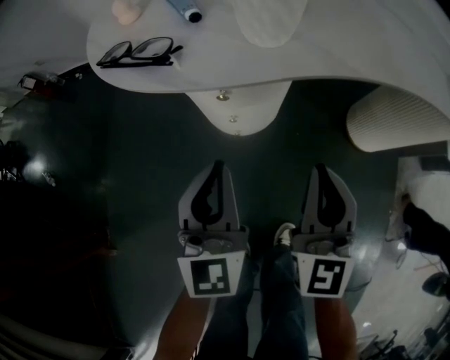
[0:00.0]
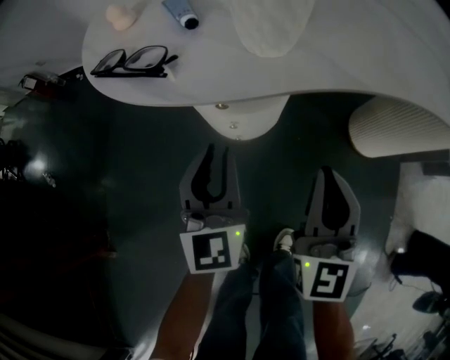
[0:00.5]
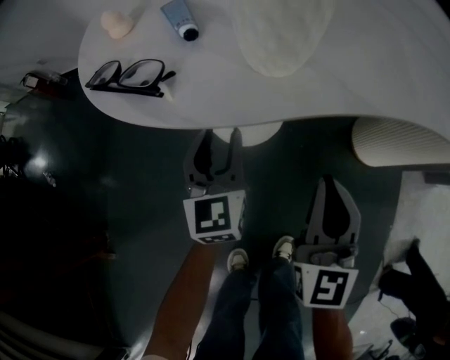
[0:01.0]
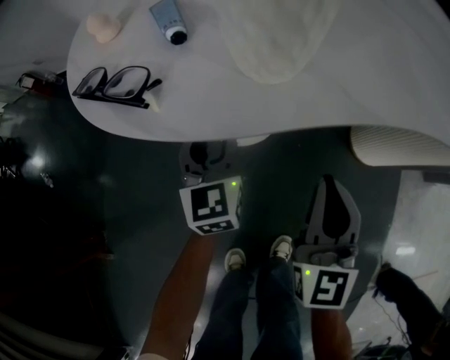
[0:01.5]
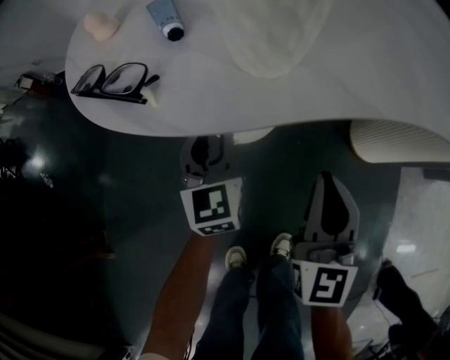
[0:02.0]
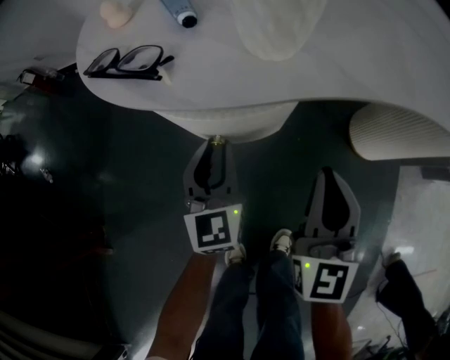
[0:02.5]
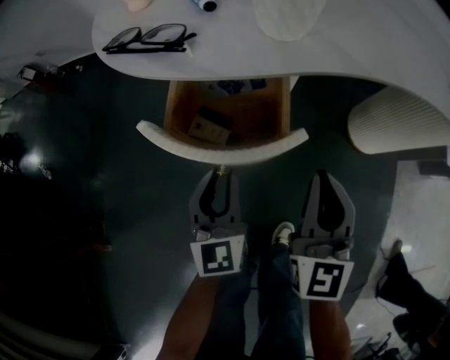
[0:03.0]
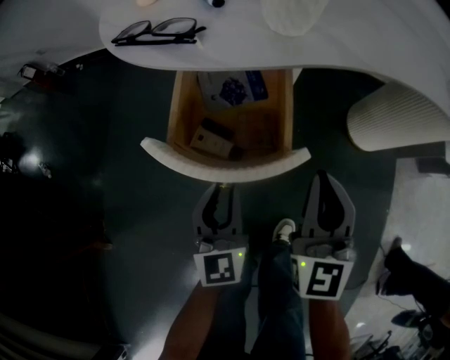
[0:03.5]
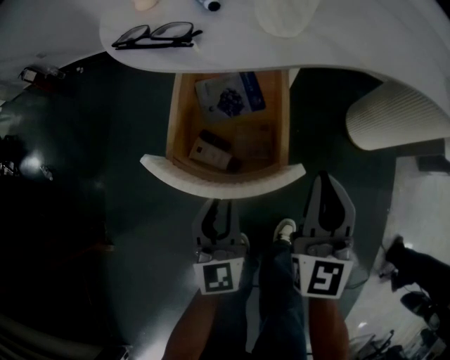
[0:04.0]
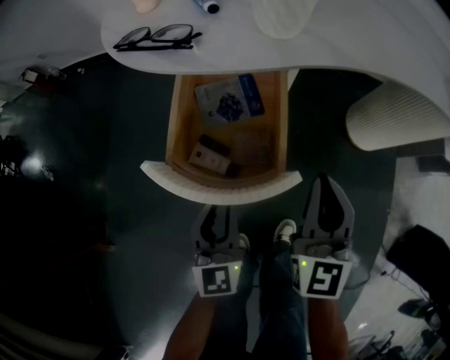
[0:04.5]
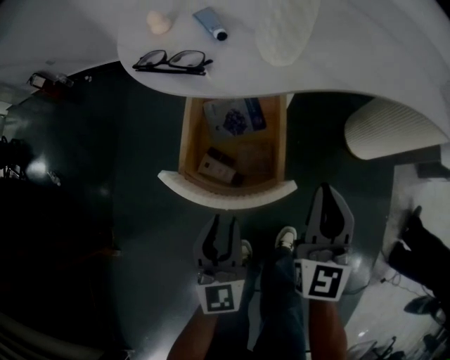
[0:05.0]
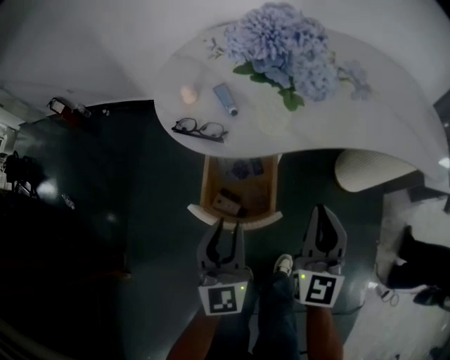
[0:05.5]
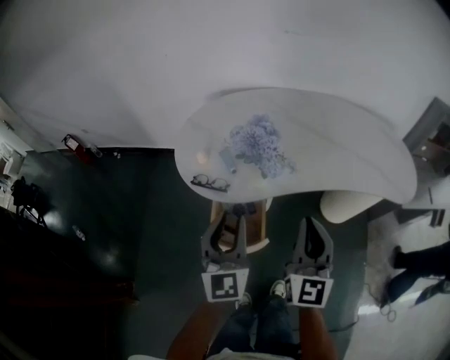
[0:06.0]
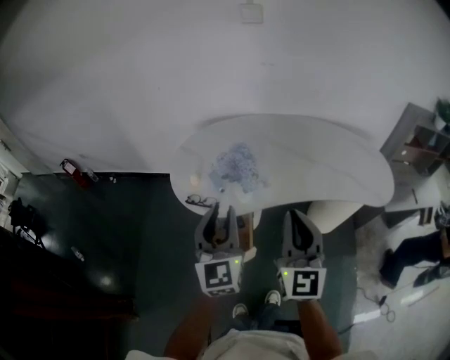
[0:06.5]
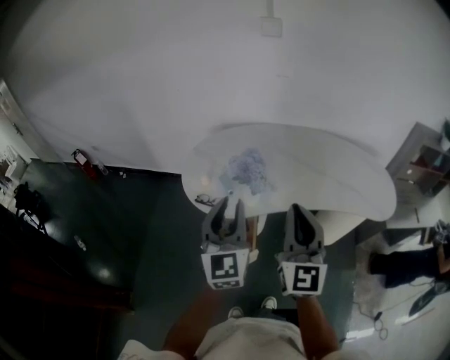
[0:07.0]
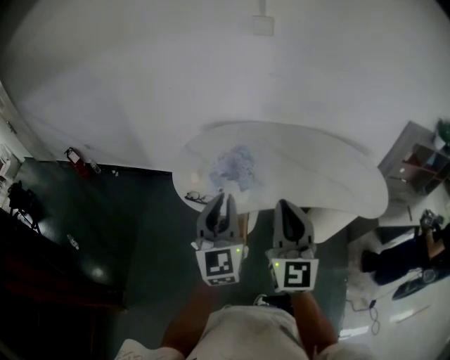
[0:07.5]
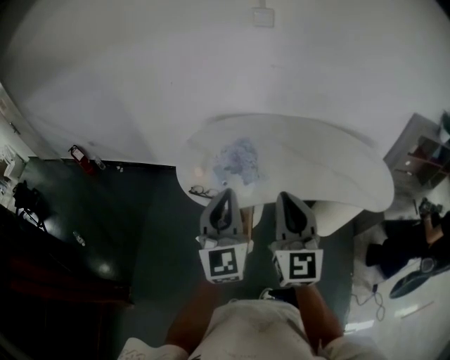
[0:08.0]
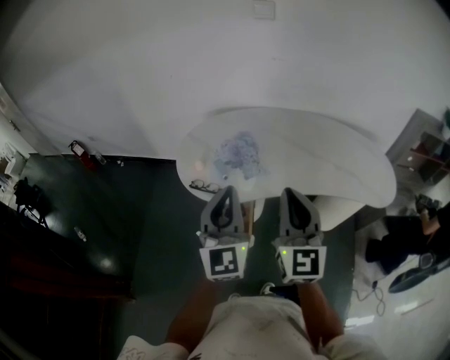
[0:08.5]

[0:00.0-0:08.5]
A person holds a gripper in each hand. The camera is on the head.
0:00.0 to 0:02.0: The right gripper is displaced forward by roughly 5 cm; the left gripper goes some 15 cm forward and downward, and opens.
0:02.0 to 0:04.0: The right gripper is displaced backward by about 10 cm. The left gripper moves backward, some 25 cm.
0:04.0 to 0:06.5: The grippers both shift upward by about 40 cm. The left gripper rotates about 20 degrees.
0:06.5 to 0:08.5: The left gripper moves roughly 5 cm, and closes its fingers.

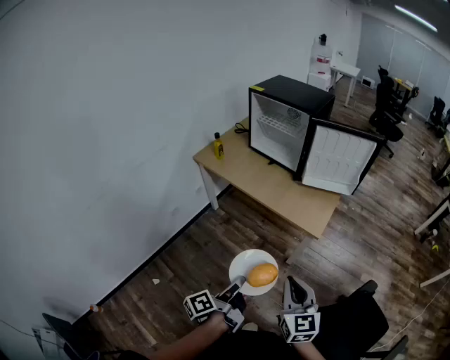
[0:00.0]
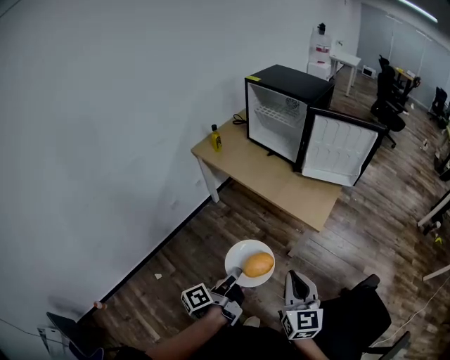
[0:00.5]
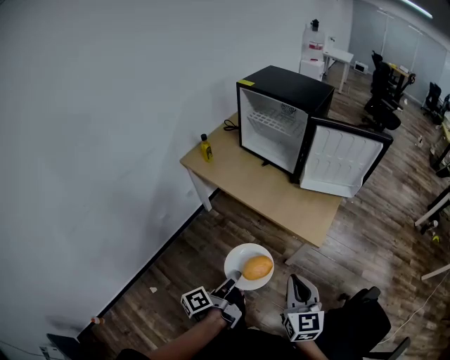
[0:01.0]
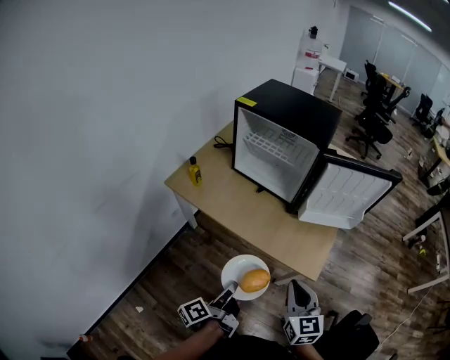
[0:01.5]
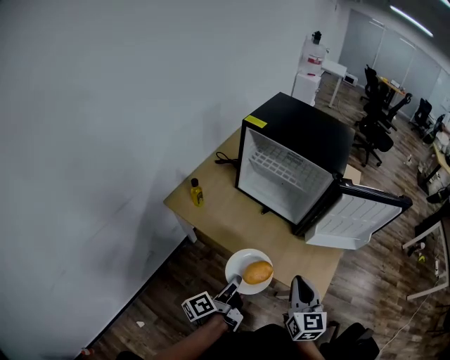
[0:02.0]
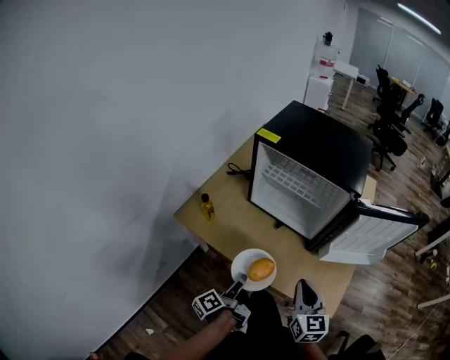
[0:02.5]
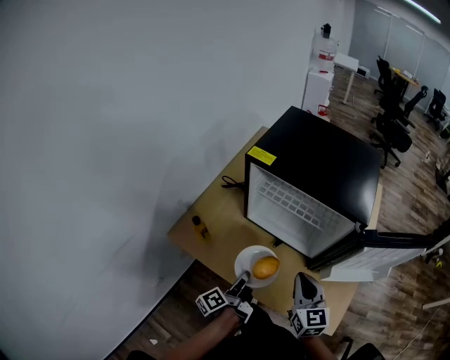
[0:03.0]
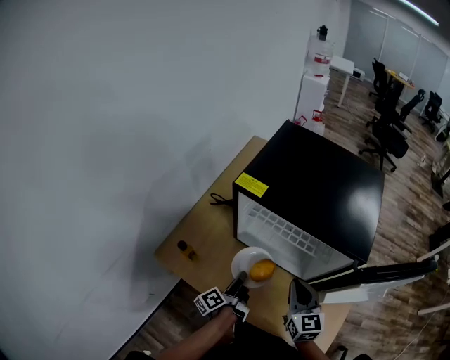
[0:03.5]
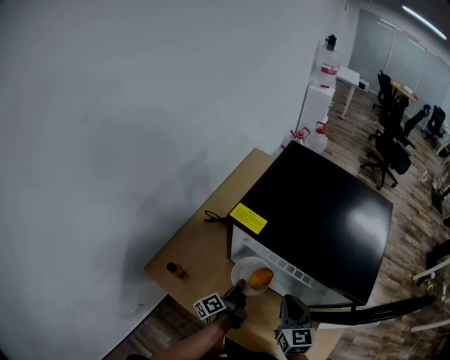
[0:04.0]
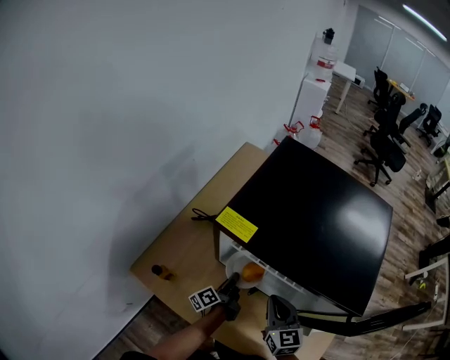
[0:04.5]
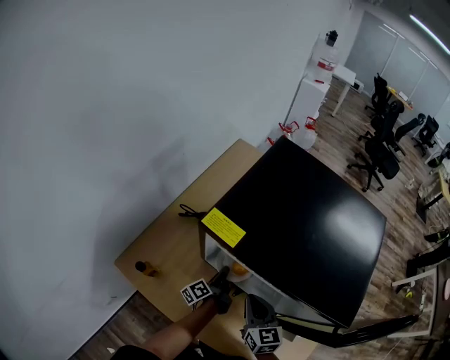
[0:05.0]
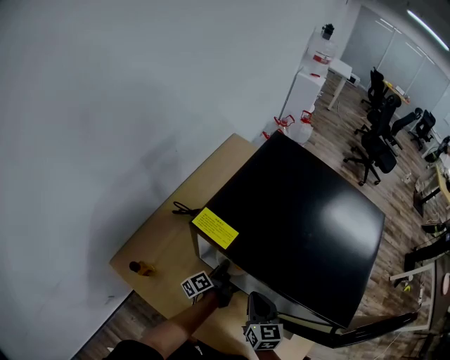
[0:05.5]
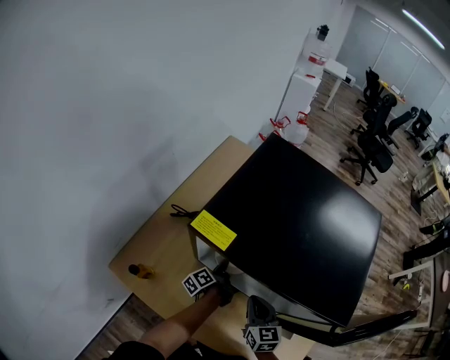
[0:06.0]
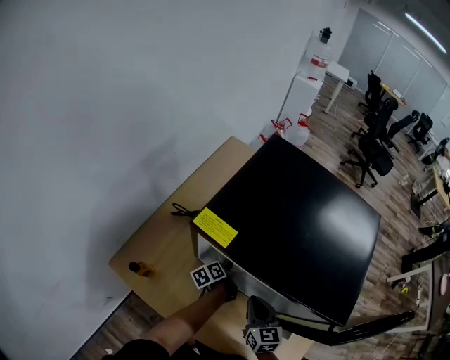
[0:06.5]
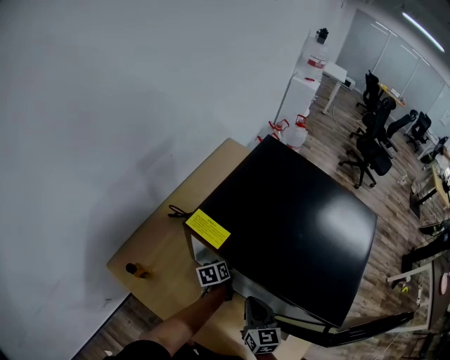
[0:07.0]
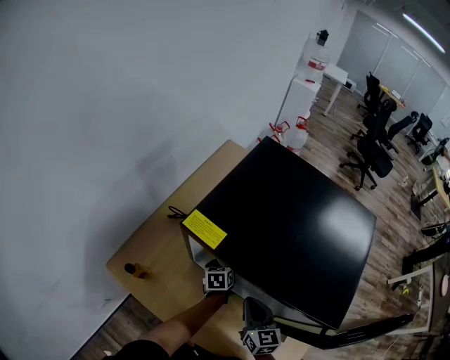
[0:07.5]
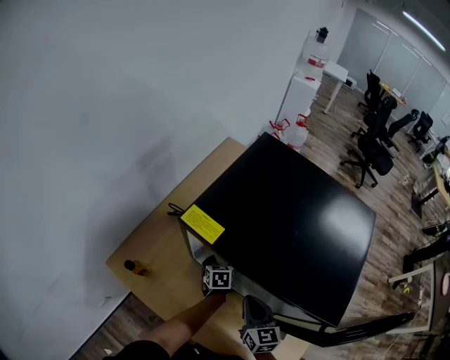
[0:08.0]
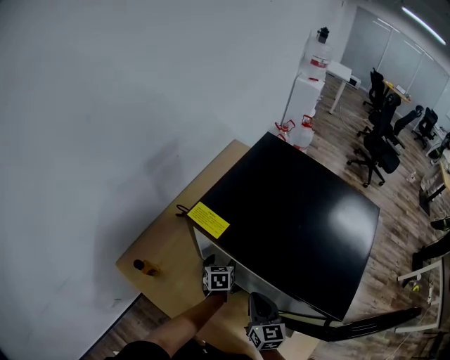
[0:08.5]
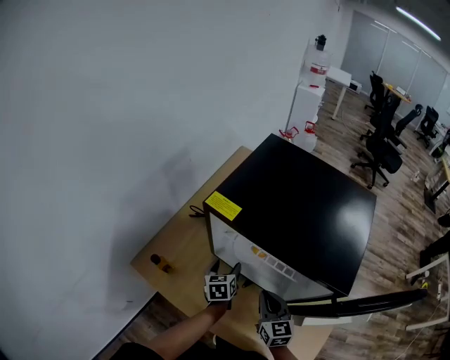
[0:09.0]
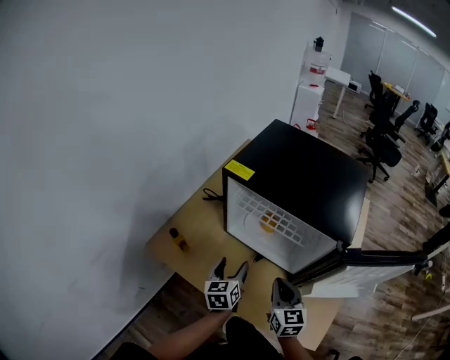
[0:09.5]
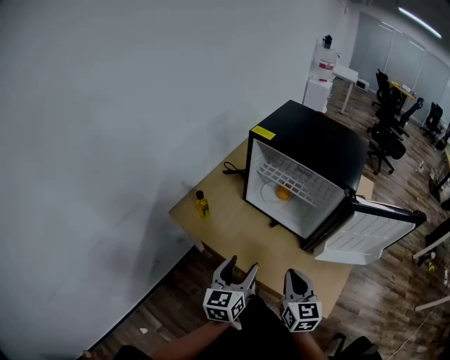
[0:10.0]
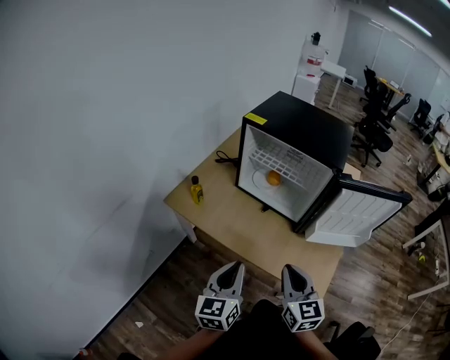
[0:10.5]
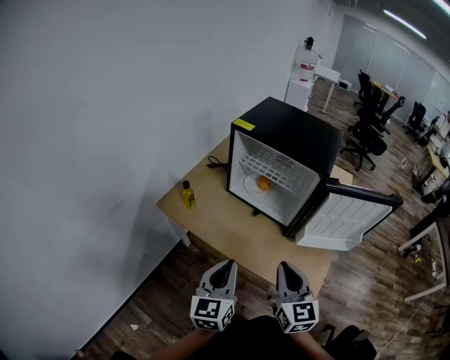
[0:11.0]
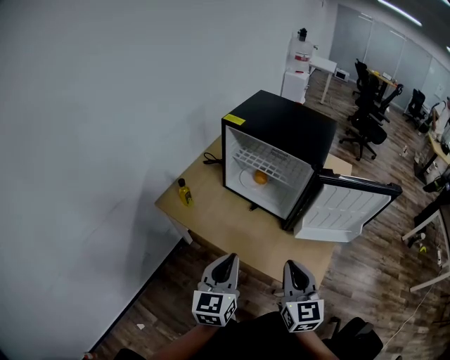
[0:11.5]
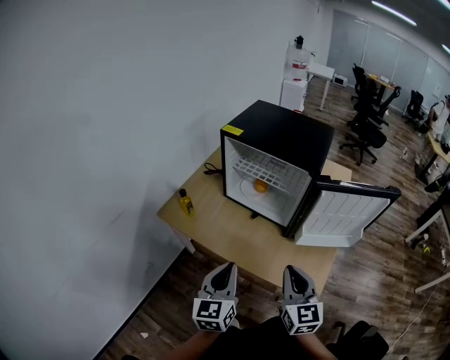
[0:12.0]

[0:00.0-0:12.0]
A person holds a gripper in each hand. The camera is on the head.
0:00.0 to 0:02.0: The two grippers go about 35 cm forward.
0:02.0 to 0:04.0: The grippers both shift forward by about 35 cm.
0:04.0 to 0:06.0: The left gripper travels forward and downward by roughly 15 cm, while the right gripper is displaced downward by roughly 10 cm.
0:06.0 to 0:08.0: The left gripper twists approximately 60 degrees clockwise, seen from behind, and opens its fingers.
0:08.0 to 0:10.0: The right gripper moves backward and upward, about 30 cm. Meanwhile the left gripper shifts about 50 cm backward and upward, and tilts its fingers roughly 40 degrees upward.
0:10.0 to 0:12.0: The left gripper is displaced backward and upward by some 10 cm, and closes its fingers. Meanwhile the right gripper moves upward and backward, approximately 10 cm.

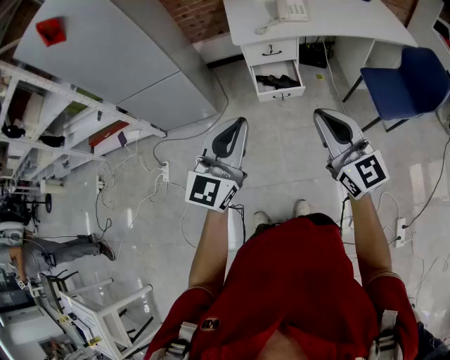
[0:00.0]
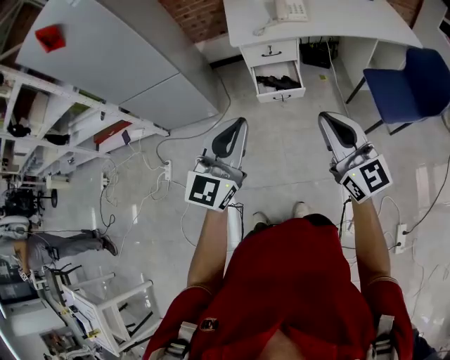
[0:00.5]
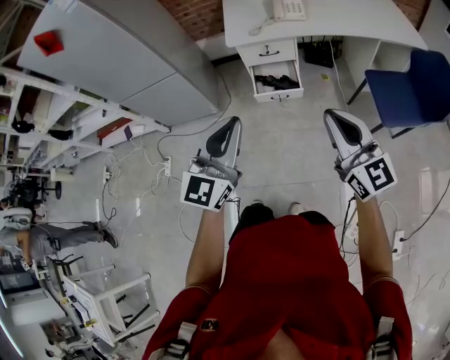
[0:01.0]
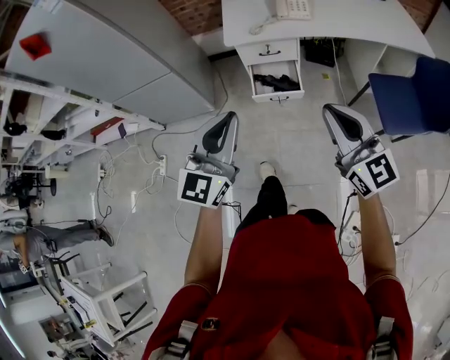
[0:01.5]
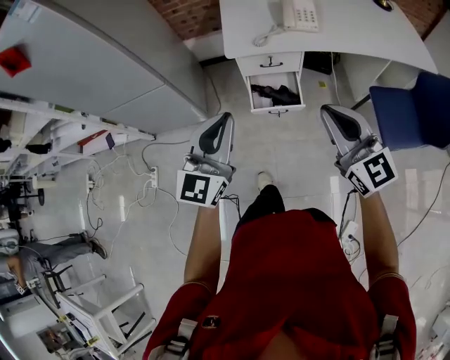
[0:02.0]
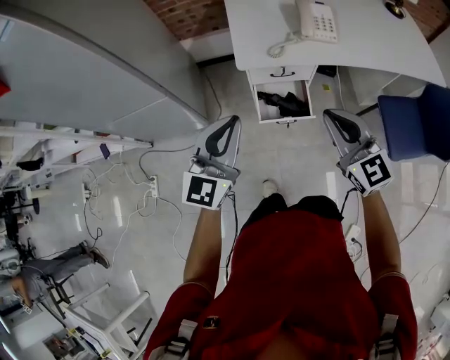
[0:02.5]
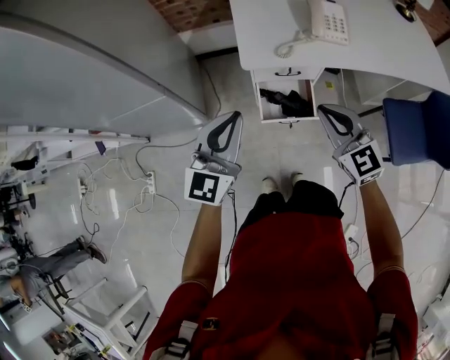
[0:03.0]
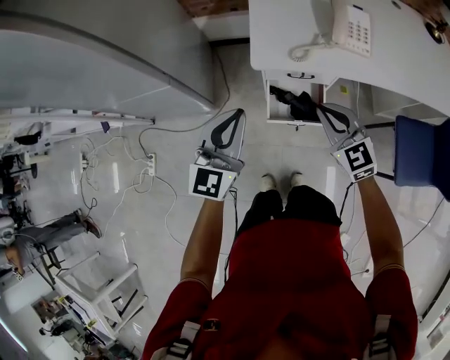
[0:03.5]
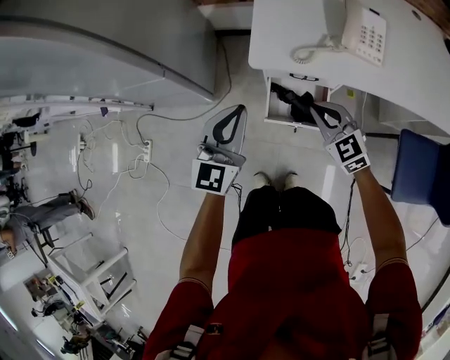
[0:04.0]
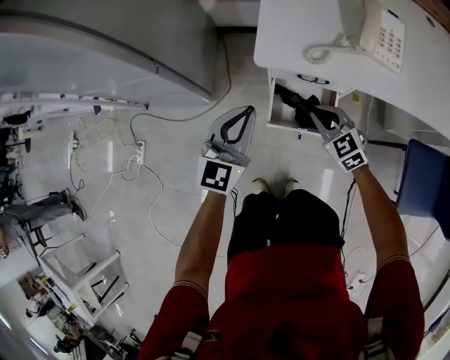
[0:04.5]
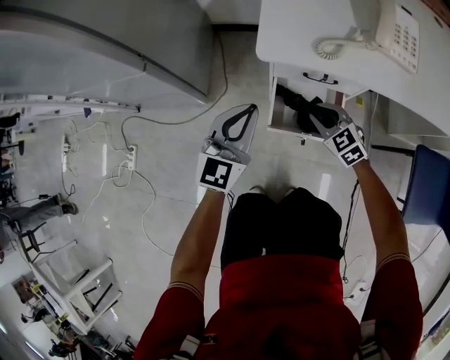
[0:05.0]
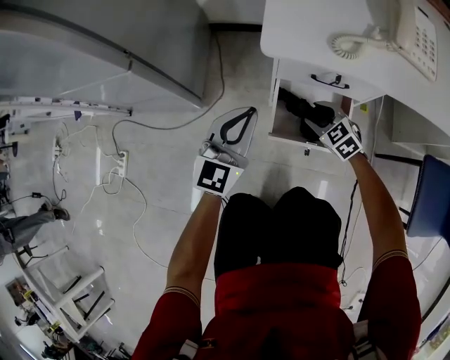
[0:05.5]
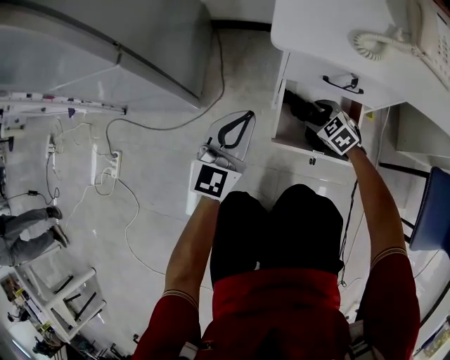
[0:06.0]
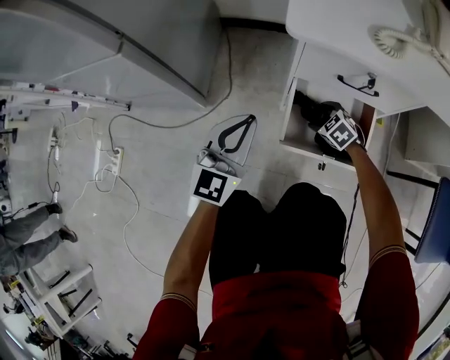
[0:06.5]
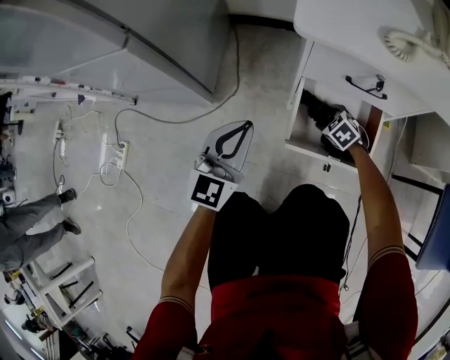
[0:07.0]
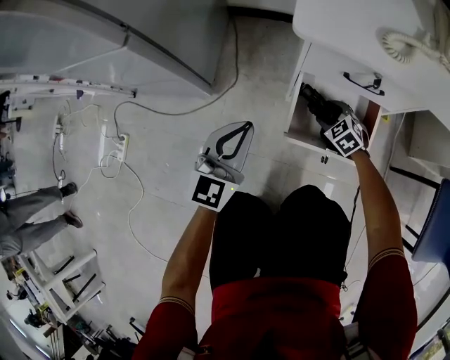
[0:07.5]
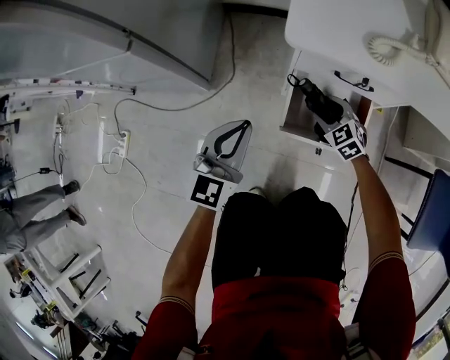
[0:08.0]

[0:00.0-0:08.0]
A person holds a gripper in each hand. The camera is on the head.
0:00.0 to 0:02.0: The grippers both shift forward by approximately 20 cm.
0:02.0 to 0:04.0: The grippers both shift forward and downward by about 35 cm. The right gripper turns by approximately 30 degrees.
0:04.0 to 0:06.0: The two grippers go roughly 35 cm downward. The right gripper rotates roughly 30 degrees, and opens up.
0:06.0 to 0:08.0: The right gripper moves about 10 cm downward and comes back.
